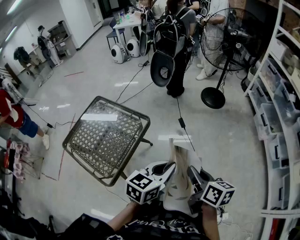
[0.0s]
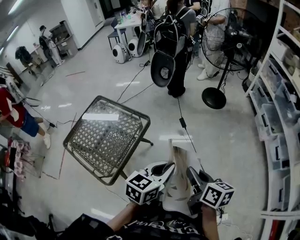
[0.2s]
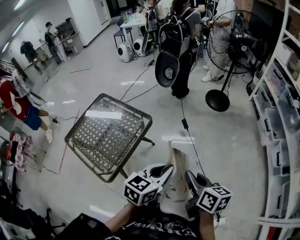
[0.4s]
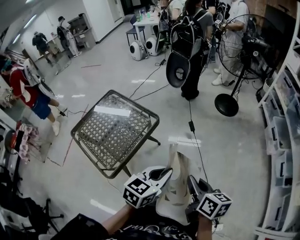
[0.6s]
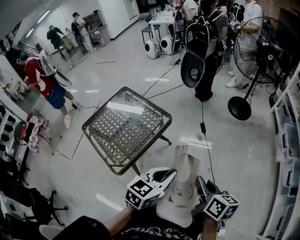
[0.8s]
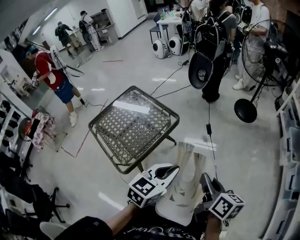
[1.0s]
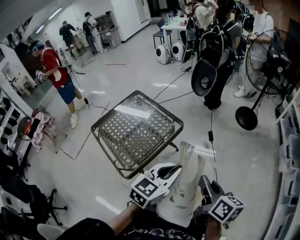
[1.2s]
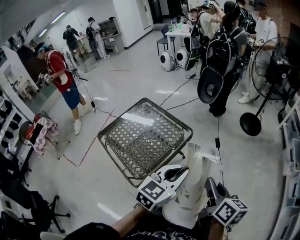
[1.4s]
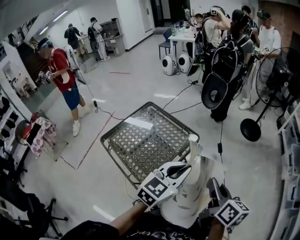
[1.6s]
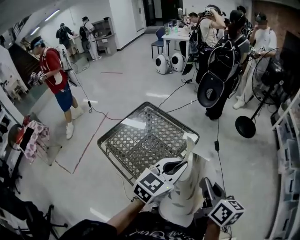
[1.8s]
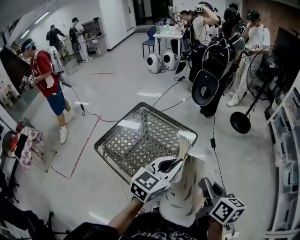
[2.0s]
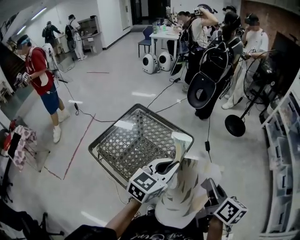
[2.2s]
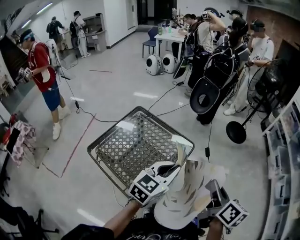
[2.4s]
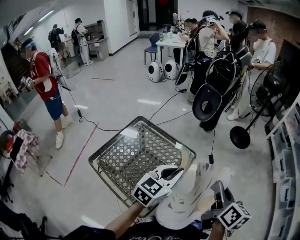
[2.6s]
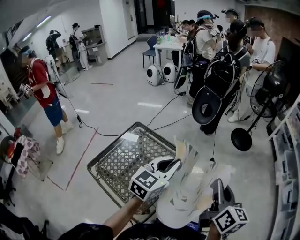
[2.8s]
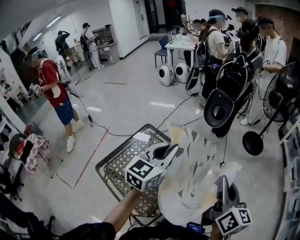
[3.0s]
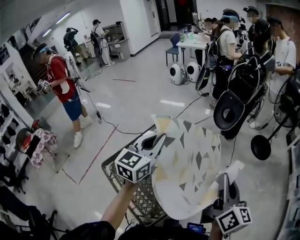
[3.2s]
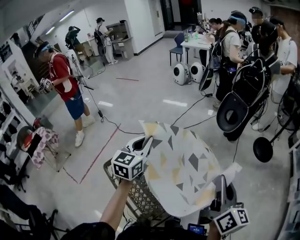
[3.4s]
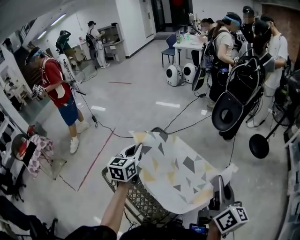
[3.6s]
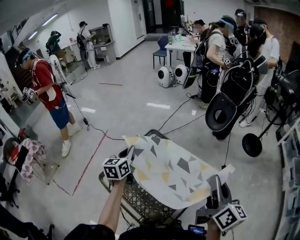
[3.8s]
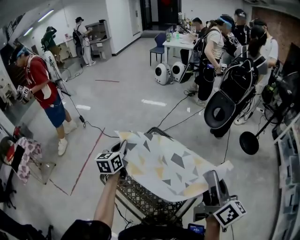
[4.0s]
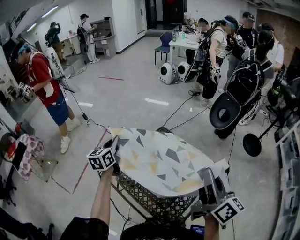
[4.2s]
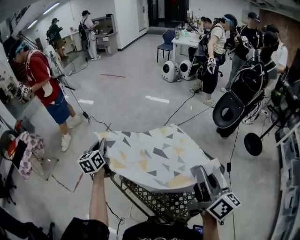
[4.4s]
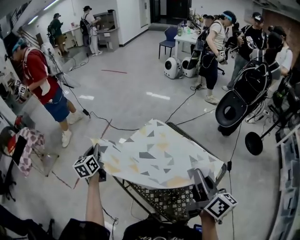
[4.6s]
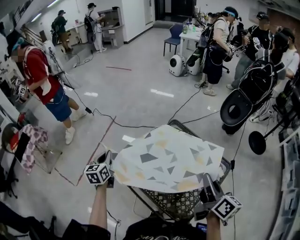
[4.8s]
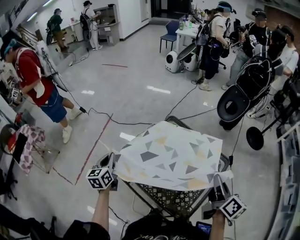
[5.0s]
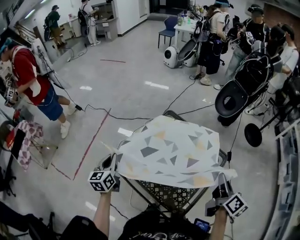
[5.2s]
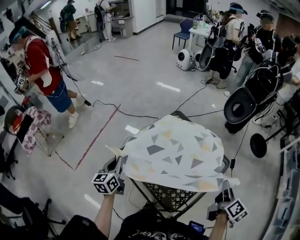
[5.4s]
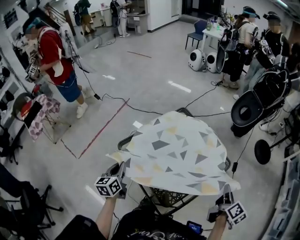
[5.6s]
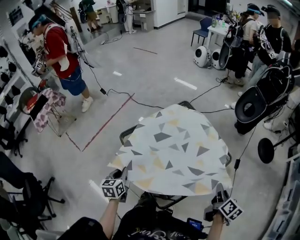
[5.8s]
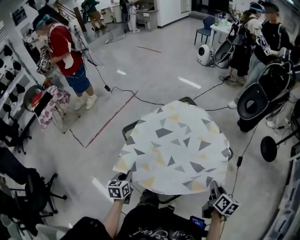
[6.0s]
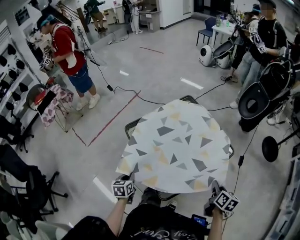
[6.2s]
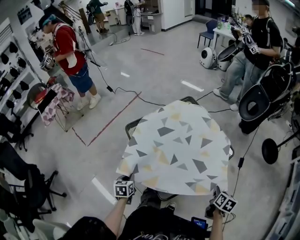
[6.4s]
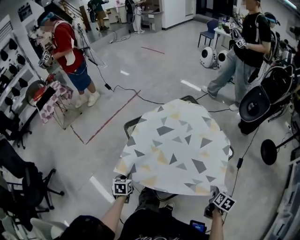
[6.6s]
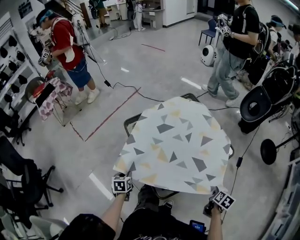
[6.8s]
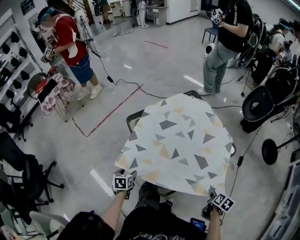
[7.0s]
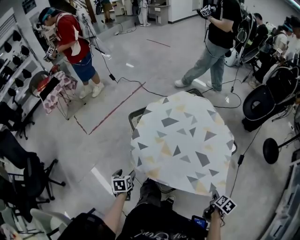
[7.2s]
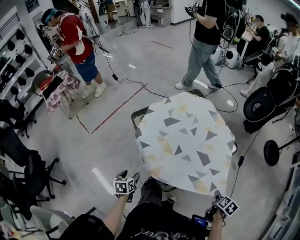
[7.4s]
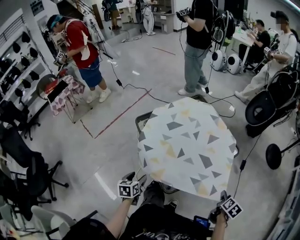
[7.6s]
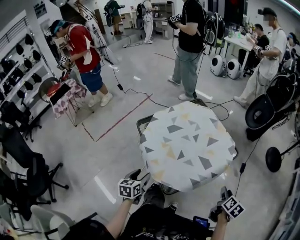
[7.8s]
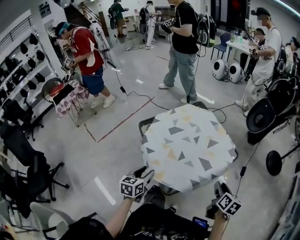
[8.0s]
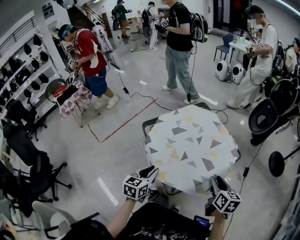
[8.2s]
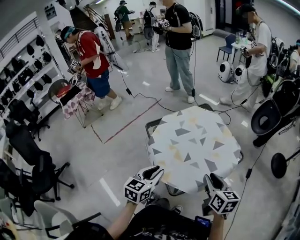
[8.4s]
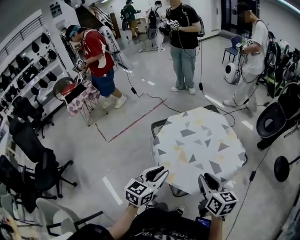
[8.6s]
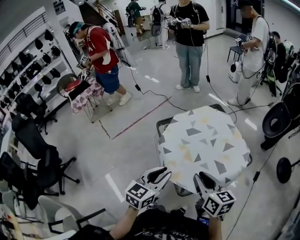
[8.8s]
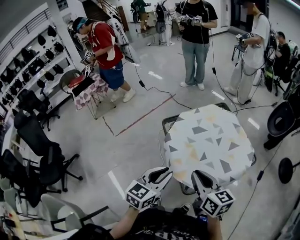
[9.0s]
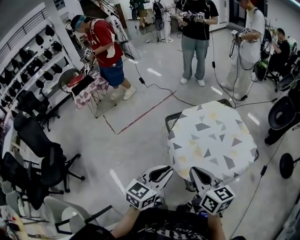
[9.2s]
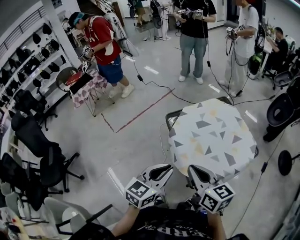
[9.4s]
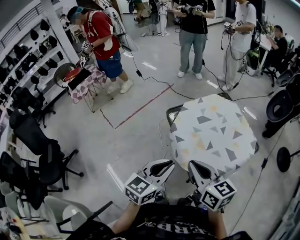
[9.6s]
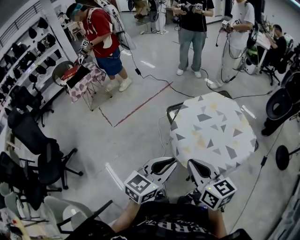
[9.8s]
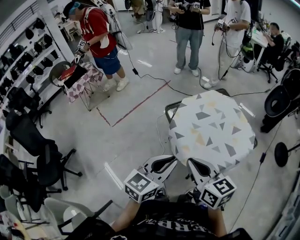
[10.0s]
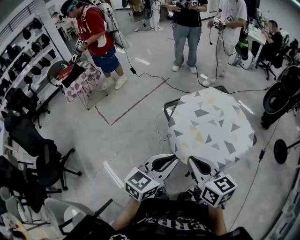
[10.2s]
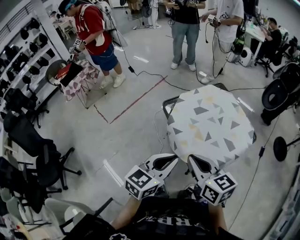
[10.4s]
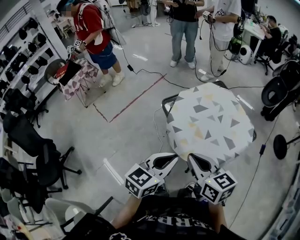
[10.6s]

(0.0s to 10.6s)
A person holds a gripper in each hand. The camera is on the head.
0.0s - 1.6s: The grippers both shift to the left by about 20 cm. The left gripper changes its angle by roughly 20 degrees.
1.6s - 3.0s: The grippers both shift forward and to the left by roughly 30 cm. The right gripper changes its angle by about 20 degrees.
3.0s - 4.6s: The left gripper shifts by roughly 70 cm, and turns by approximately 50 degrees. Meanwhile the right gripper ends up about 40 cm from where it was, and turns by roughly 20 degrees.
4.6s - 6.0s: The right gripper goes about 35 cm downward, to the right and backward, and swivels approximately 30 degrees; the left gripper heads backward, to the right and downward, covering about 40 cm, and rotates some 20 degrees.
6.0s - 7.6s: The left gripper heads backward, covering roughly 10 cm, and opens up, while the right gripper shifts approximately 20 cm to the right, backward and downward, rotates roughly 30 degrees, and opens up.
7.6s - 9.0s: The right gripper heads to the left and upward, covering some 50 cm, tips its fingers upward by approximately 30 degrees, and closes up. The left gripper shifts about 25 cm upward, rotates some 40 degrees, and closes up.
9.0s - 10.6s: The right gripper moves to the left, about 10 cm, while the left gripper heads to the left, covering roughly 5 cm.

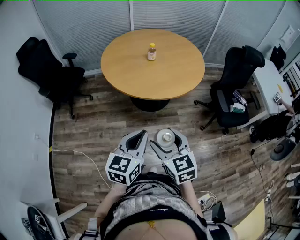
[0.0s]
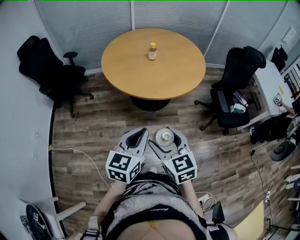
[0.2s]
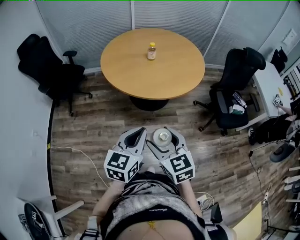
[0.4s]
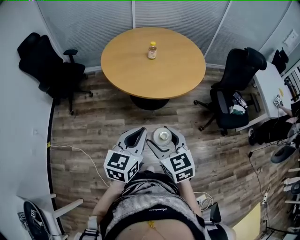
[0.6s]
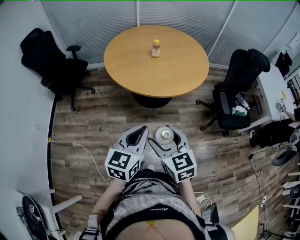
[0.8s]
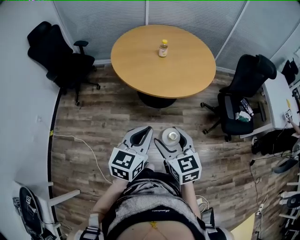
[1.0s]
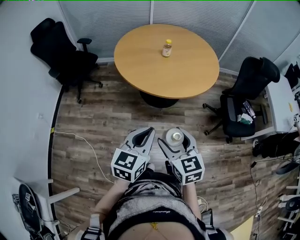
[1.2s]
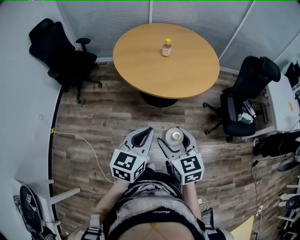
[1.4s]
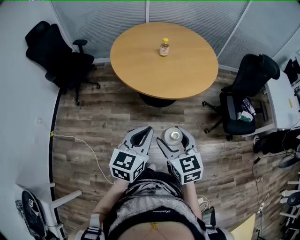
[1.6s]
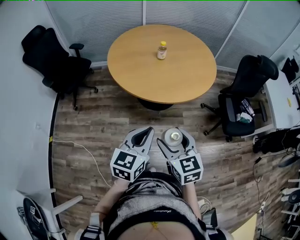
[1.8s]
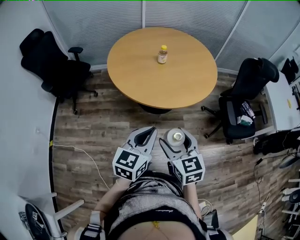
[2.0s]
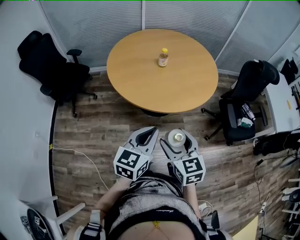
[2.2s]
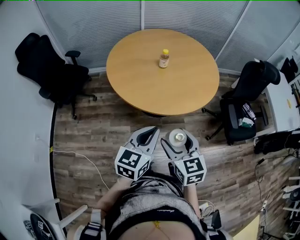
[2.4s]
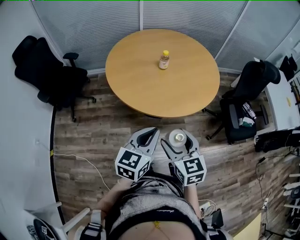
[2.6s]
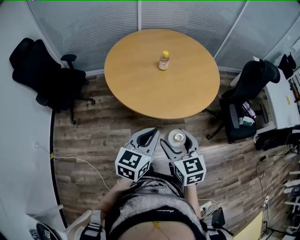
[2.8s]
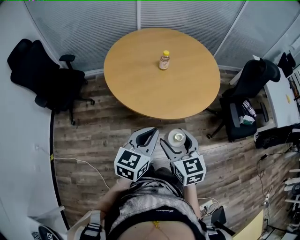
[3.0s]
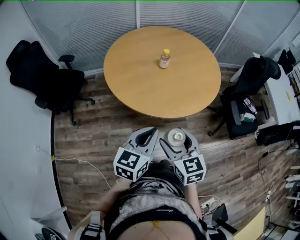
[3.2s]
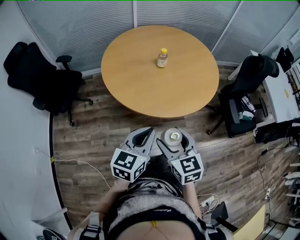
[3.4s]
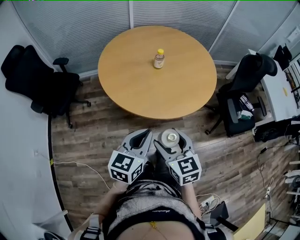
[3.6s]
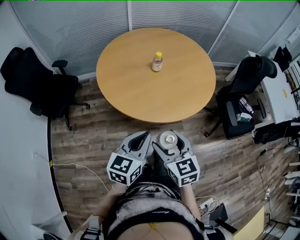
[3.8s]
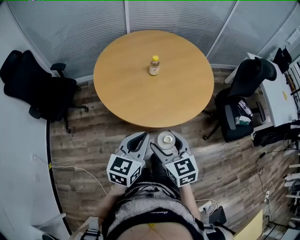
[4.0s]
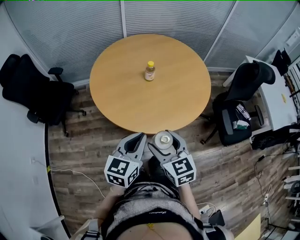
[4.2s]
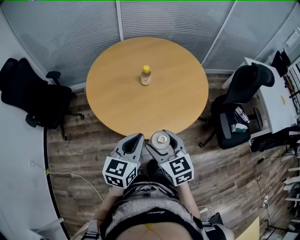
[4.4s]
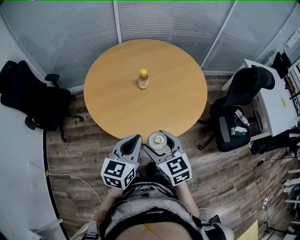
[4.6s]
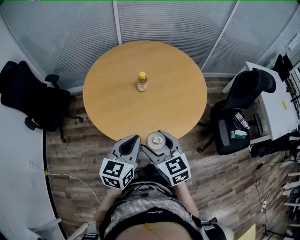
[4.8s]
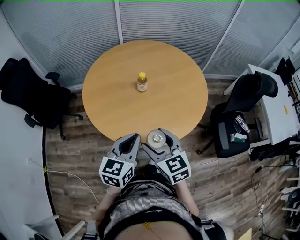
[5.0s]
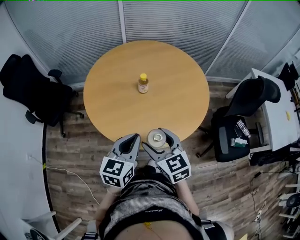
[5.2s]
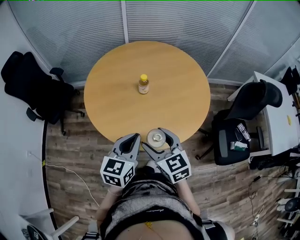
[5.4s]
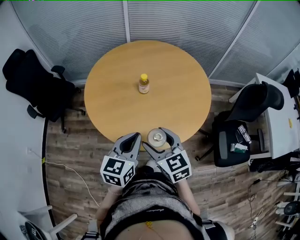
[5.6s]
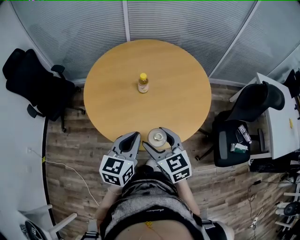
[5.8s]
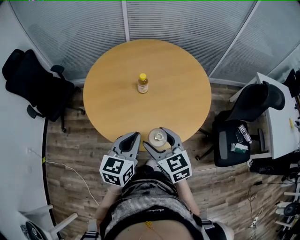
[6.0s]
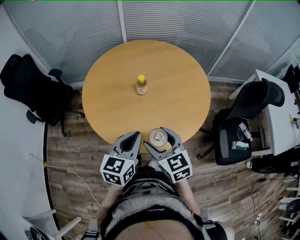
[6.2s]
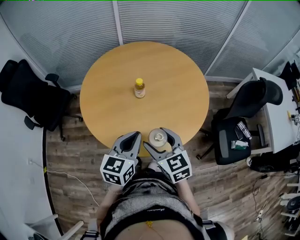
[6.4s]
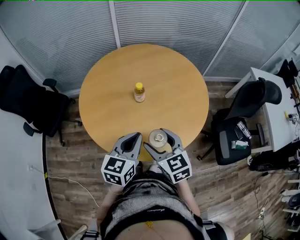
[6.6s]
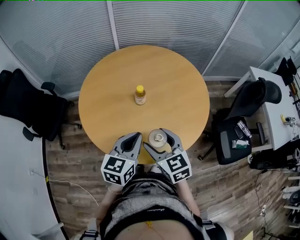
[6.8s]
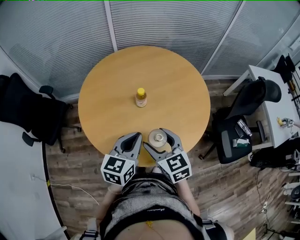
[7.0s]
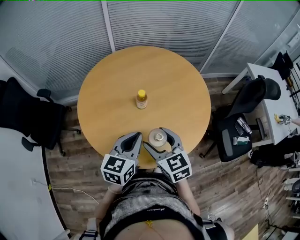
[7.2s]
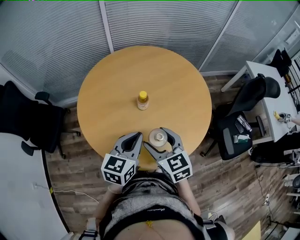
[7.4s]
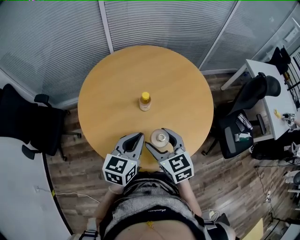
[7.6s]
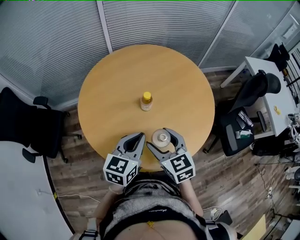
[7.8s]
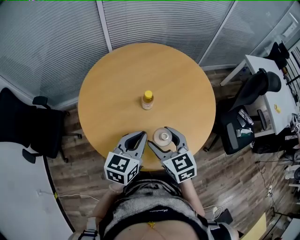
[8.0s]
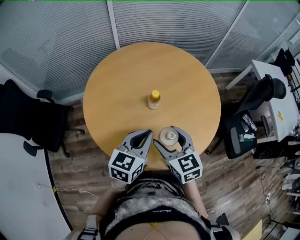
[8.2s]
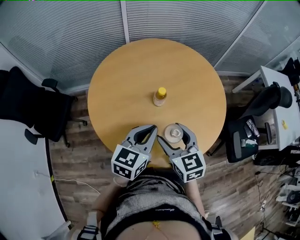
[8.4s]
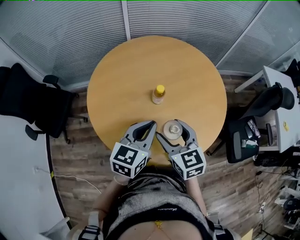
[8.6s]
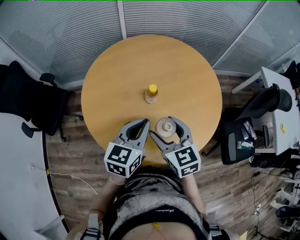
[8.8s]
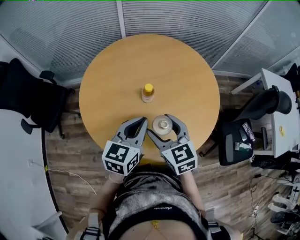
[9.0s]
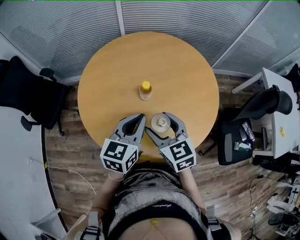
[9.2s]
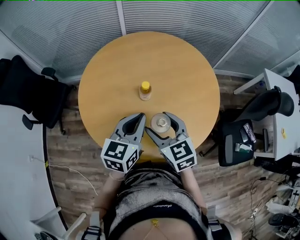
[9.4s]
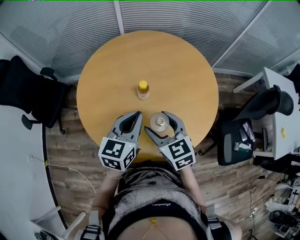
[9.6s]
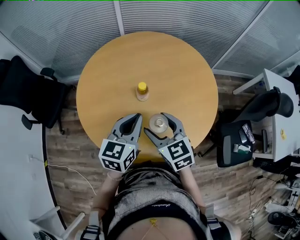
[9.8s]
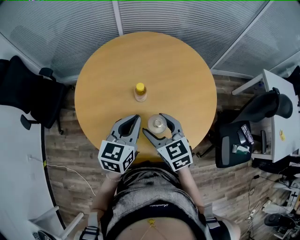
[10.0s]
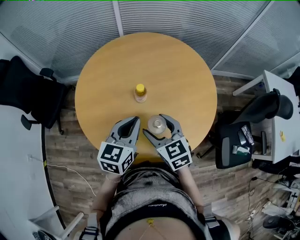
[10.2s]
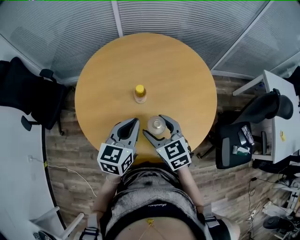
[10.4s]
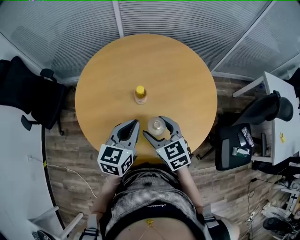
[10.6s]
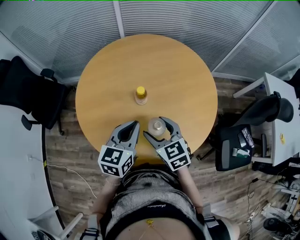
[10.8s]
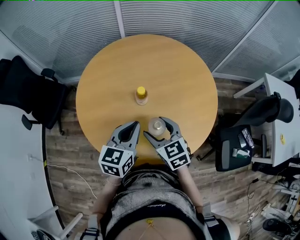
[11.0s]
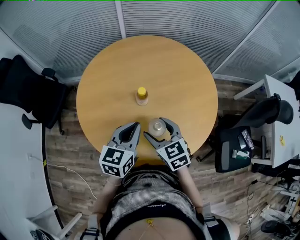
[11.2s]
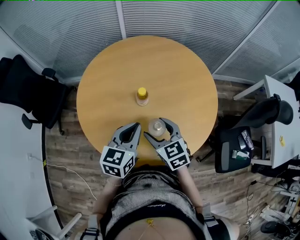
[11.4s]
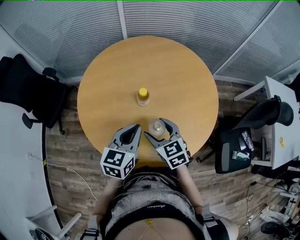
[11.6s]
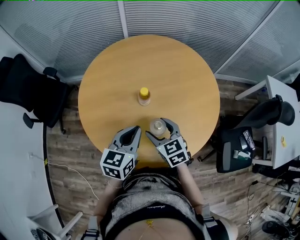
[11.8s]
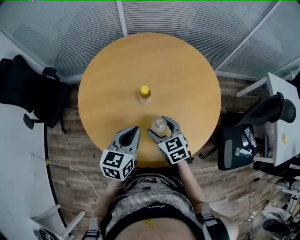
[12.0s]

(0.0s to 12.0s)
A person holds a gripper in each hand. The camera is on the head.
0.0s - 1.6s: The right gripper moves roughly 5 cm.
1.6s - 3.0s: Both grippers travel together forward and to the left, about 15 cm.
3.0s - 4.4s: The grippers both shift forward by about 10 cm.
4.4s - 6.0s: Both grippers move forward and to the right, some 10 cm.
6.0s - 7.6s: Both grippers travel together forward and to the left, roughly 15 cm.
7.6s - 9.0s: The left gripper moves about 5 cm.
9.0s - 10.4s: The grippers move only a little.
10.4s - 12.0s: The right gripper is displaced downward by approximately 5 cm.

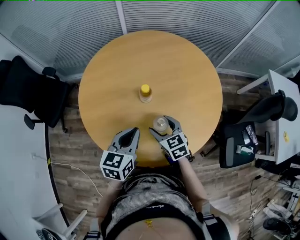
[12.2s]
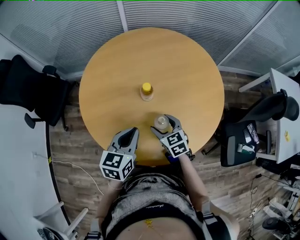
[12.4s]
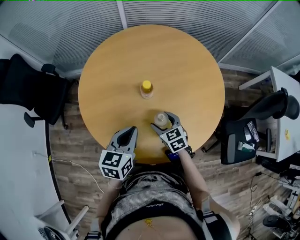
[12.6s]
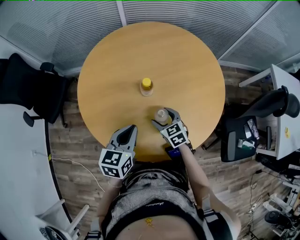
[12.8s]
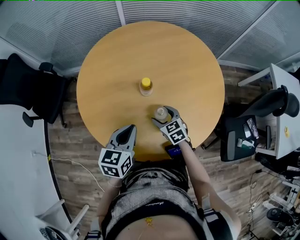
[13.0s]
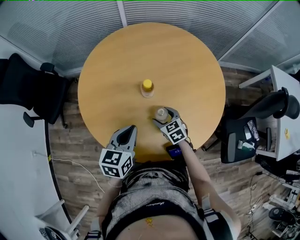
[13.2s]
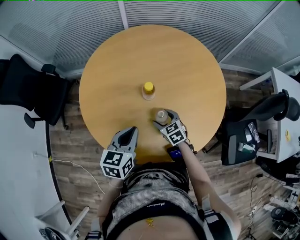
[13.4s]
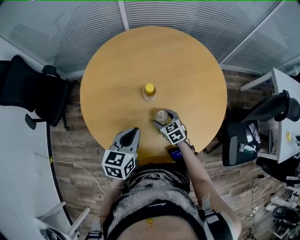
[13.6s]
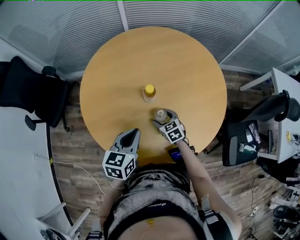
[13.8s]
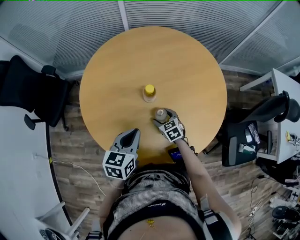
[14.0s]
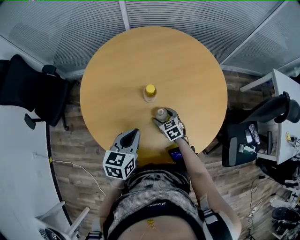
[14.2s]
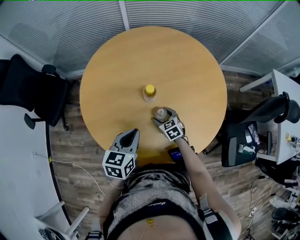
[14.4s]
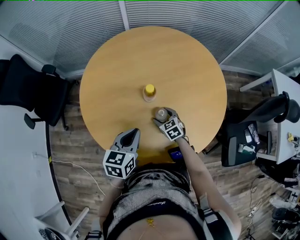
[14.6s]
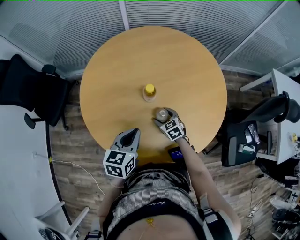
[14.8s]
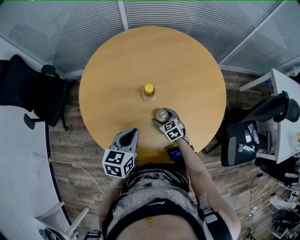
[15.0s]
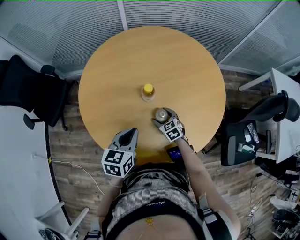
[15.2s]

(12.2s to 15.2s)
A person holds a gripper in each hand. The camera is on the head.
12.2s - 13.8s: The right gripper goes roughly 15 cm downward.
13.8s - 15.2s: The grippers move only a little.
